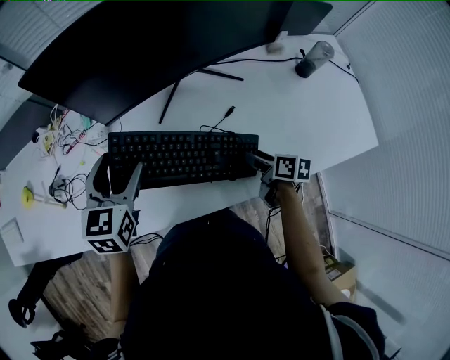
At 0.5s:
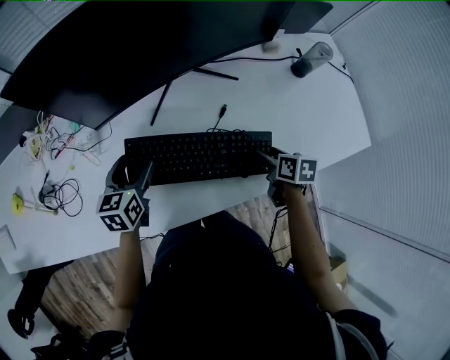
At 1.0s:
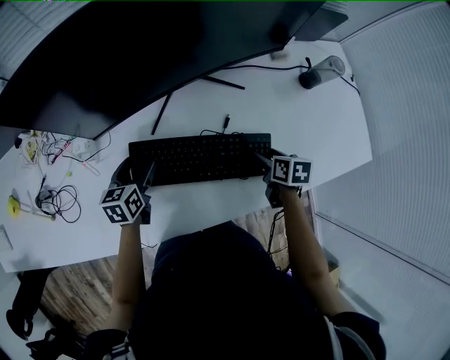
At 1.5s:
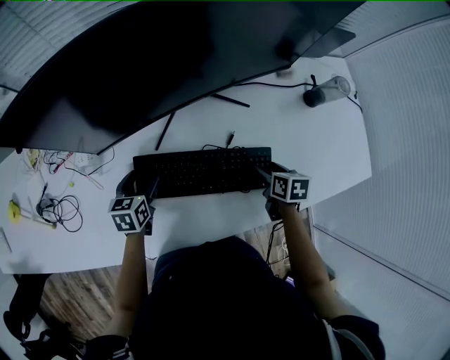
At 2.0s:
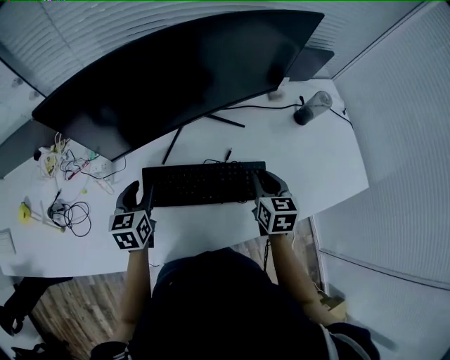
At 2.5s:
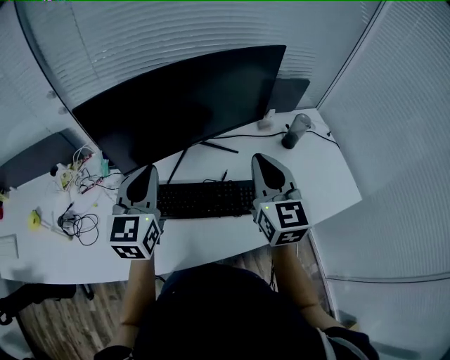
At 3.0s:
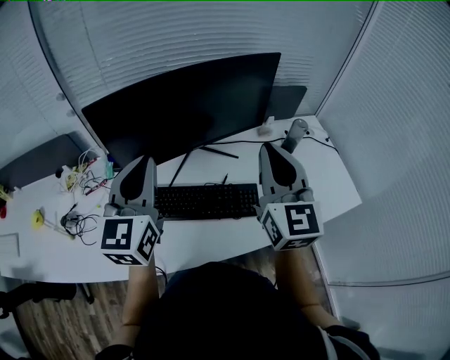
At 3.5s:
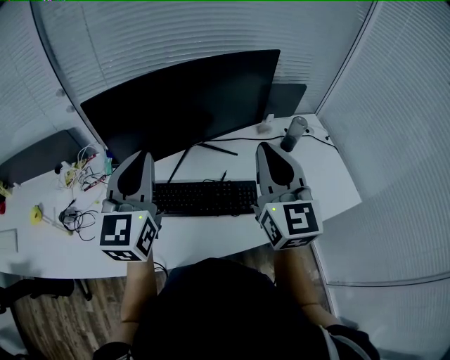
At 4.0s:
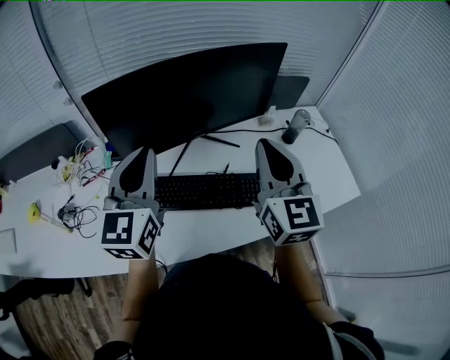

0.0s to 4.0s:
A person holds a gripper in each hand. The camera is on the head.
0.0s to 2.0s: The right gripper is displaced upward and forward by about 10 cm, turns by approximately 50 degrees, and closes its fingers, while the left gripper is displaced downward by about 10 cm, and closes its fingers.
2.0s to 4.0s: The two grippers go roughly 30 cm upward. The left gripper points its fingers approximately 40 degrees further upward, and closes, while the right gripper points its fingers about 40 degrees further upward.

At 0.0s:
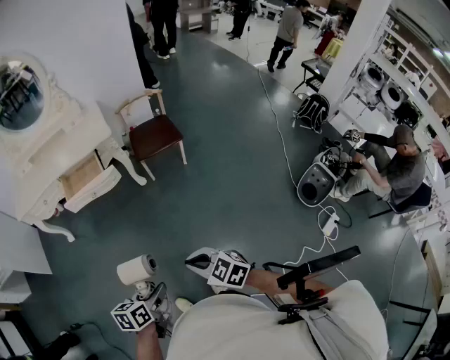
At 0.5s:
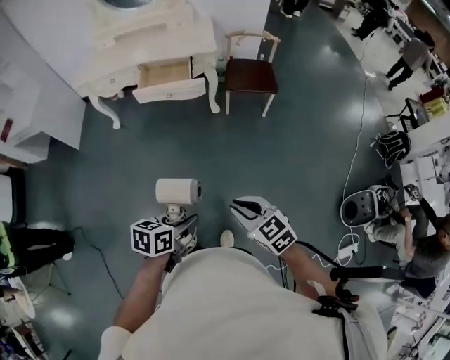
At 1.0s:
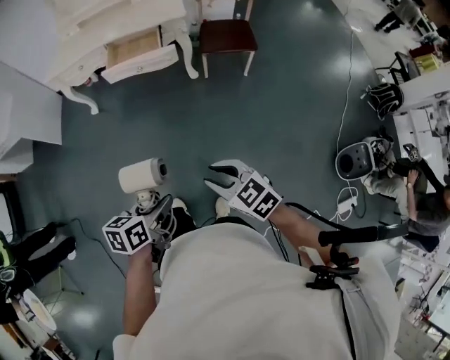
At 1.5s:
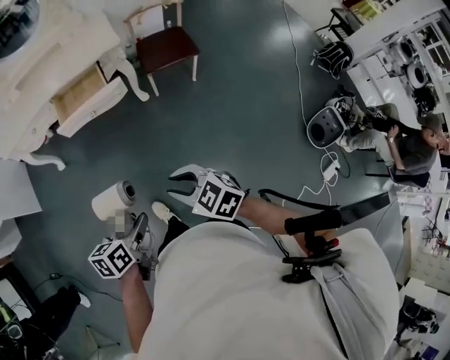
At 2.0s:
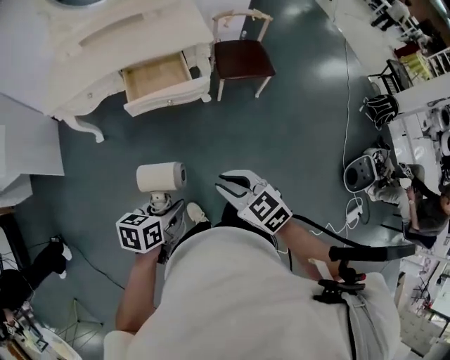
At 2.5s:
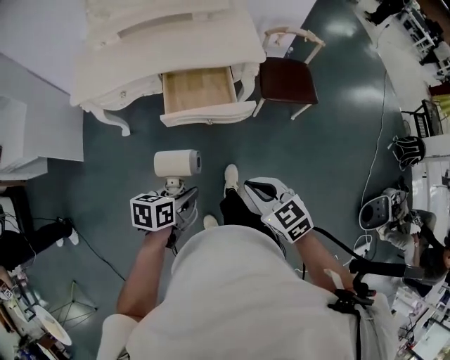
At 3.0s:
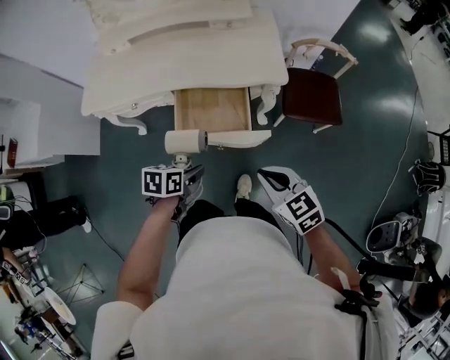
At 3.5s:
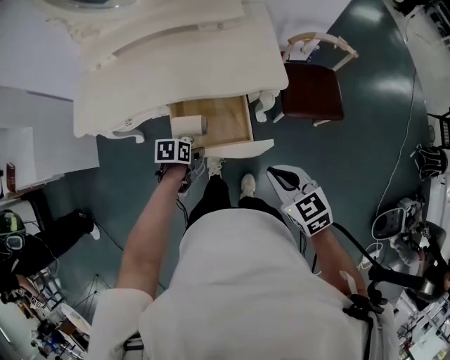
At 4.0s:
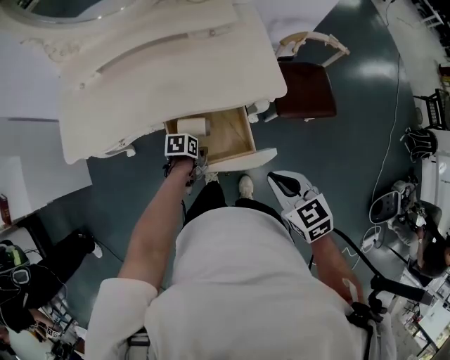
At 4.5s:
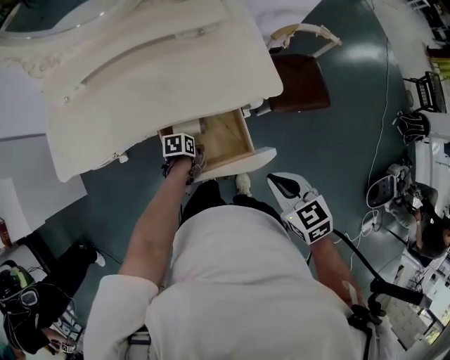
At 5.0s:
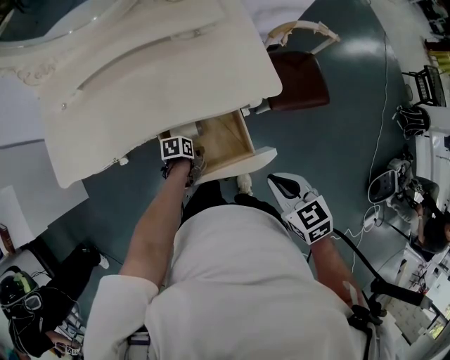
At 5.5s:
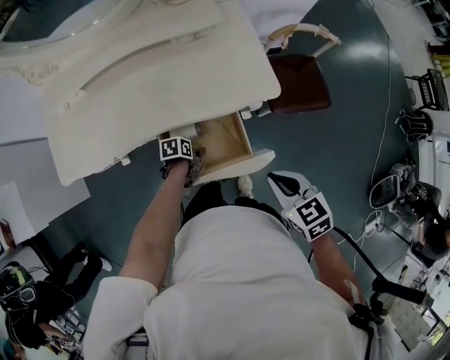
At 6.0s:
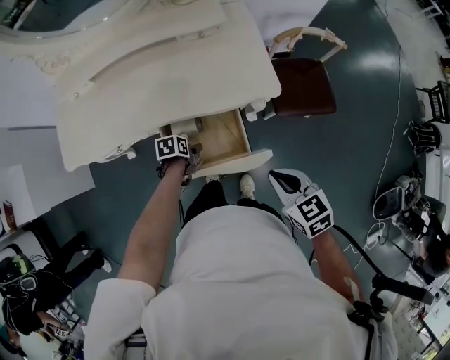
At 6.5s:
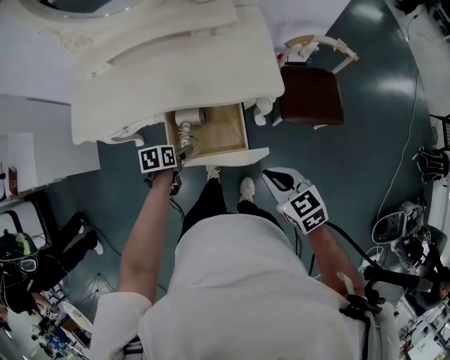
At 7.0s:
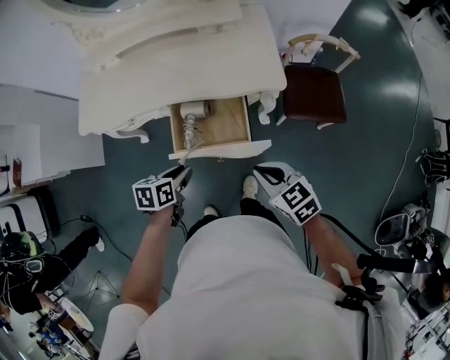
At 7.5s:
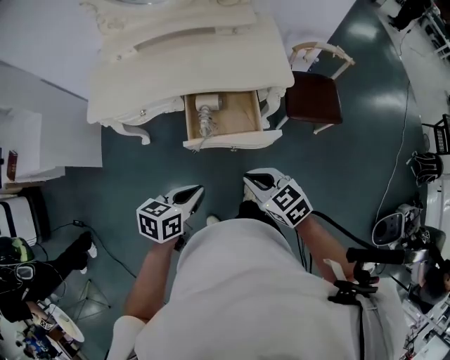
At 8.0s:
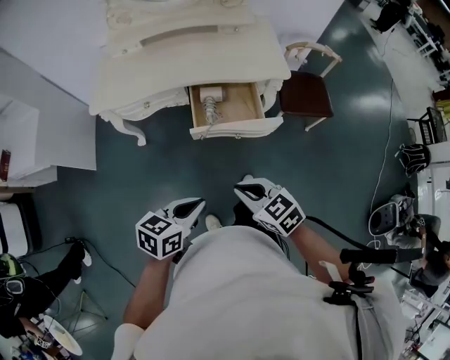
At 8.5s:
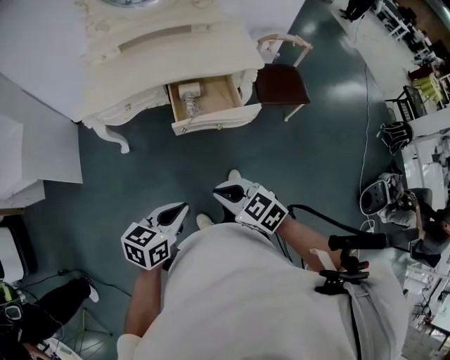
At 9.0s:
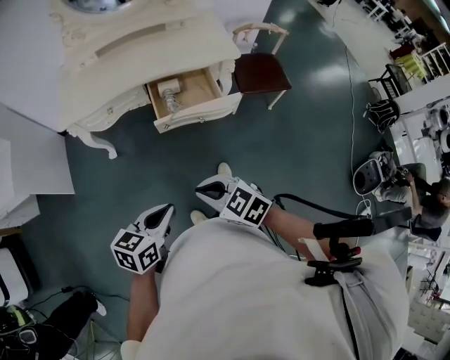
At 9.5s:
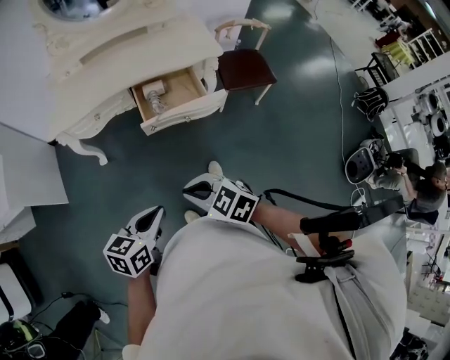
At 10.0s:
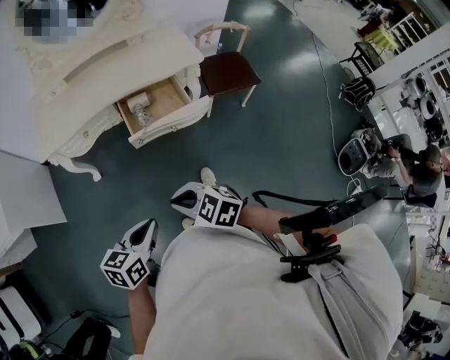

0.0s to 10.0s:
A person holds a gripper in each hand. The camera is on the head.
0.0s to 2.0s: Both grippers move forward and to the left, about 35 cm.
2.0s to 4.0s: Both grippers are carried forward, roughly 60 cm. The left gripper is displaced downward by about 25 cm, and rotates about 30 degrees.
4.0s to 6.0s: The left gripper opens.
6.0s to 8.0s: The right gripper moves backward and to the left, some 35 cm, while the left gripper travels backward and upward by some 50 cm, tips its fingers upward by some 30 degrees, and closes its fingers.
8.0s to 10.0s: The right gripper is displaced backward and to the left by roughly 10 cm, while the left gripper goes roughly 10 cm backward.

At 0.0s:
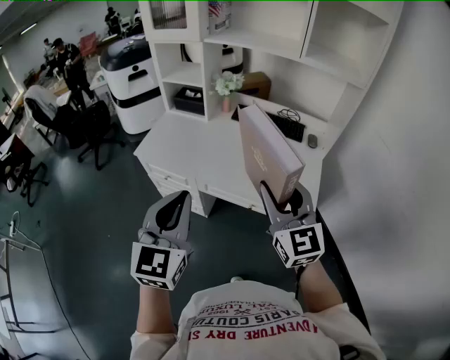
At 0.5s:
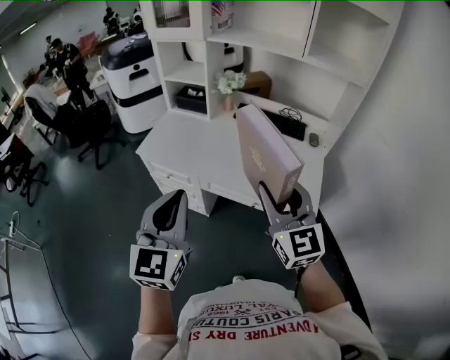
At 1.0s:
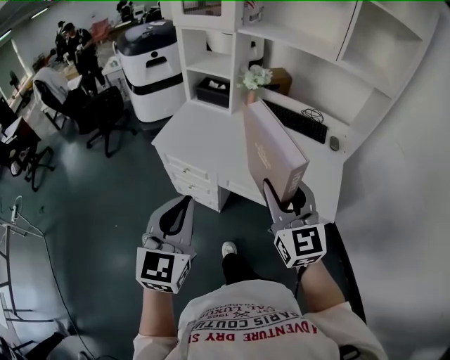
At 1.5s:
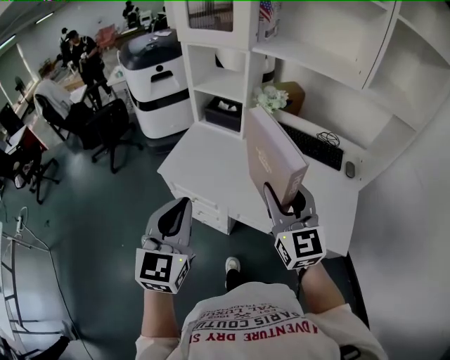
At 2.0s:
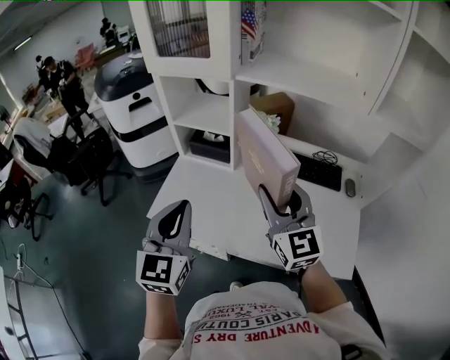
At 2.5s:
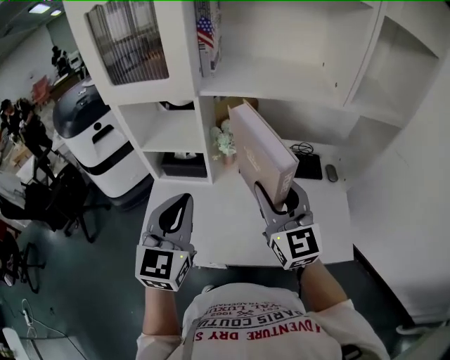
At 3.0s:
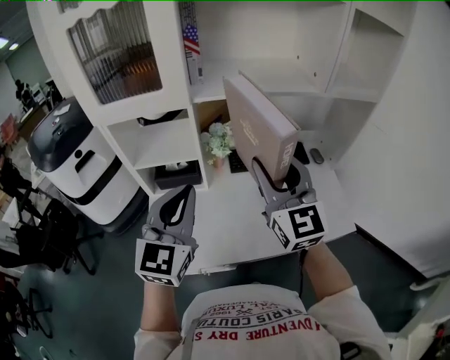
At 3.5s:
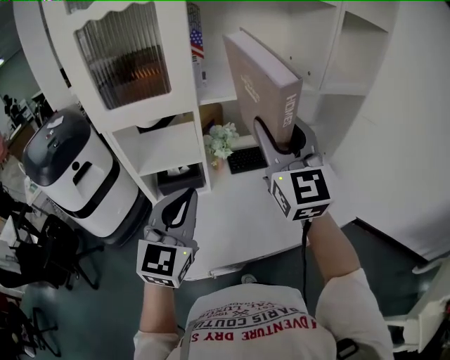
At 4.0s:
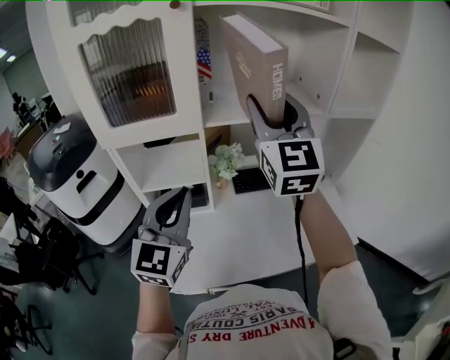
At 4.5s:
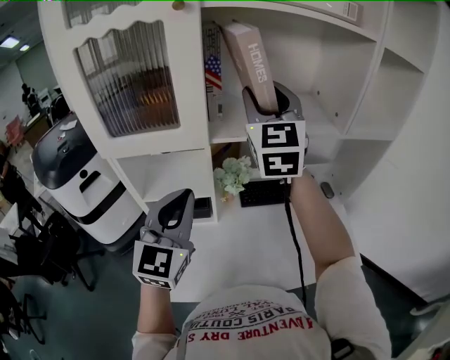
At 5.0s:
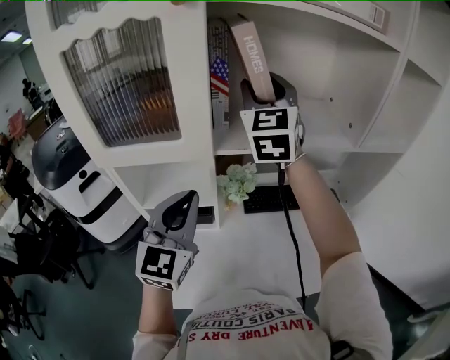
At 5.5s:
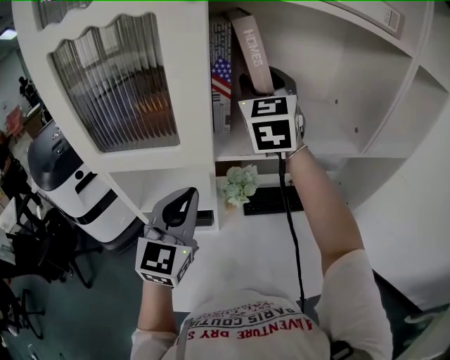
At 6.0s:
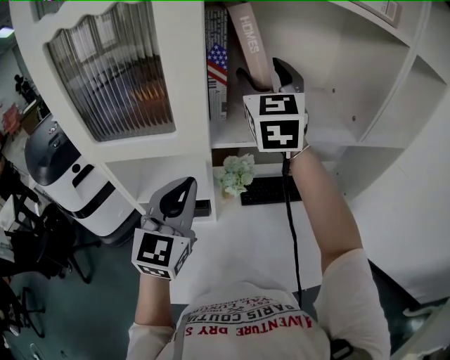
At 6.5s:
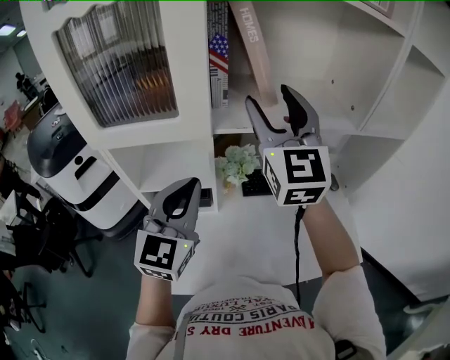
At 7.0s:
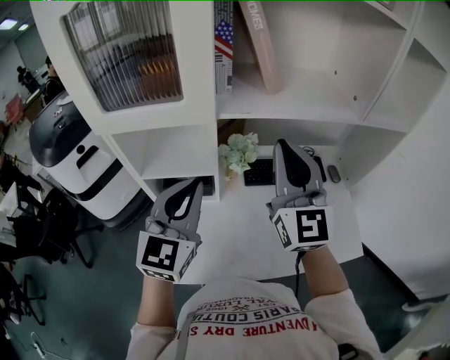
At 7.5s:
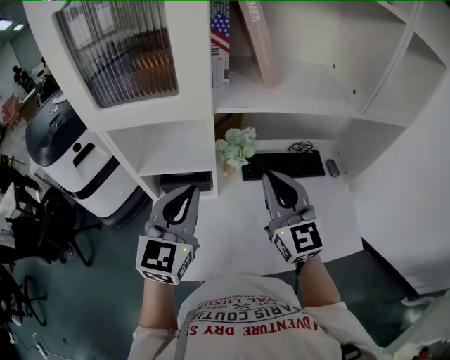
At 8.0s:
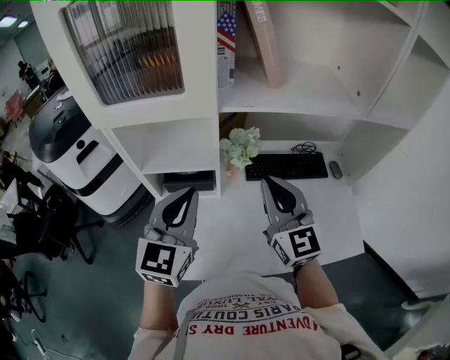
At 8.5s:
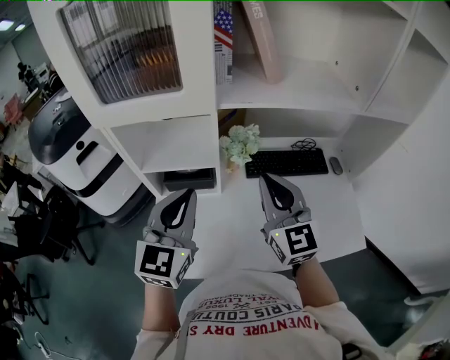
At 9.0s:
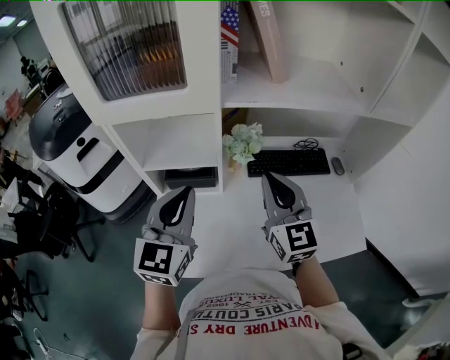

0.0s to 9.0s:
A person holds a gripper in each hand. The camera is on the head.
0.0s to 2.0s: The two grippers go roughly 35 cm forward.
2.0s to 4.5s: The left gripper ends up some 25 cm from where it was, and rotates about 30 degrees. The right gripper moves approximately 35 cm, and rotates approximately 40 degrees.
4.5s to 7.0s: The right gripper is displaced downward and backward by approximately 15 cm, and closes. Meanwhile the left gripper travels forward and back again, approximately 10 cm each way.
7.0s to 9.0s: The right gripper travels downward by about 10 cm. Meanwhile the left gripper shifts by approximately 5 cm.

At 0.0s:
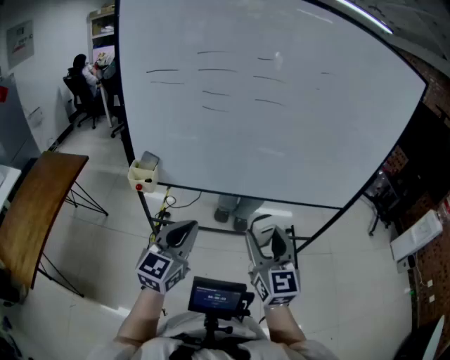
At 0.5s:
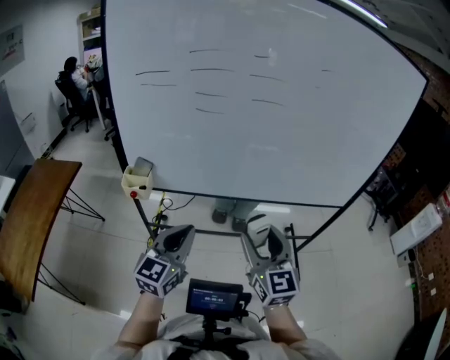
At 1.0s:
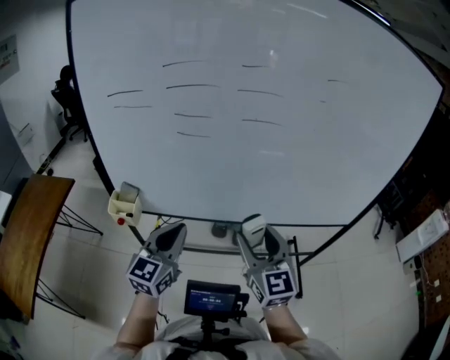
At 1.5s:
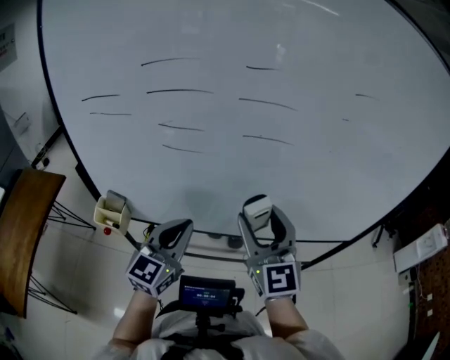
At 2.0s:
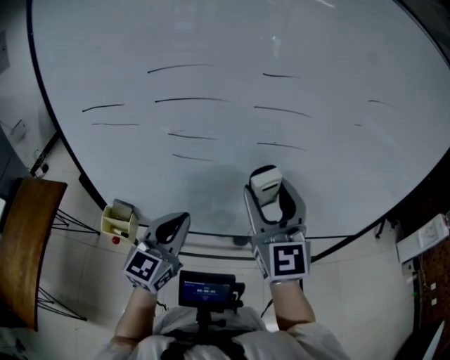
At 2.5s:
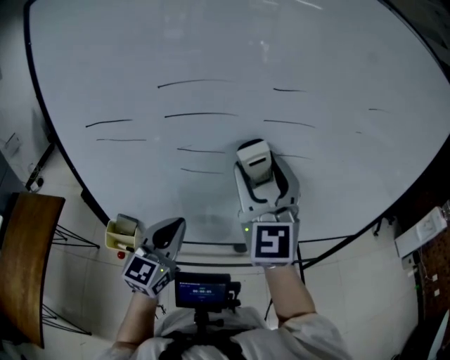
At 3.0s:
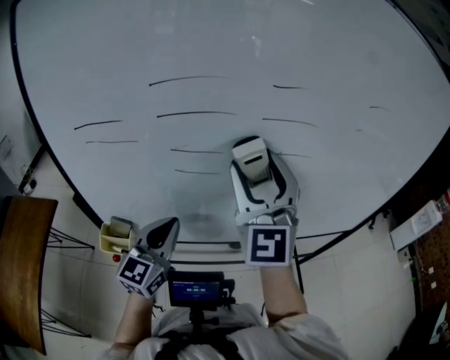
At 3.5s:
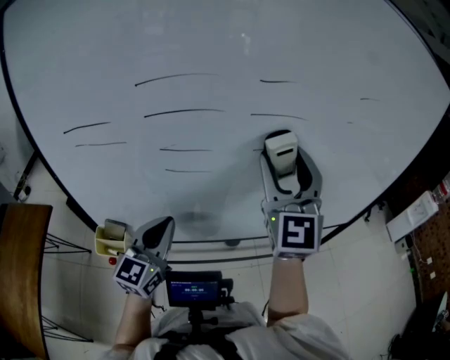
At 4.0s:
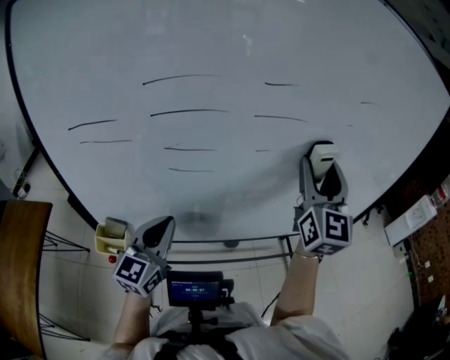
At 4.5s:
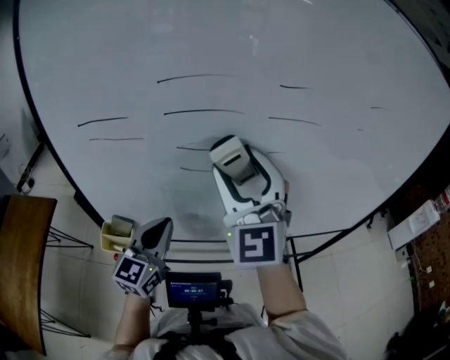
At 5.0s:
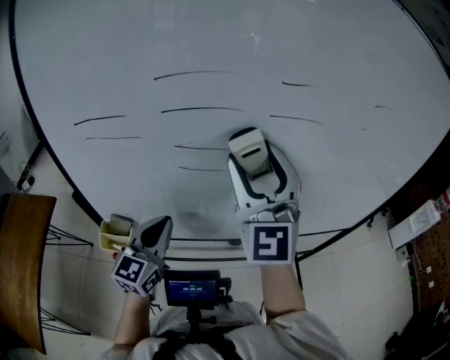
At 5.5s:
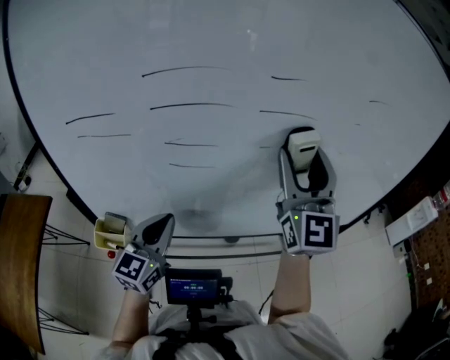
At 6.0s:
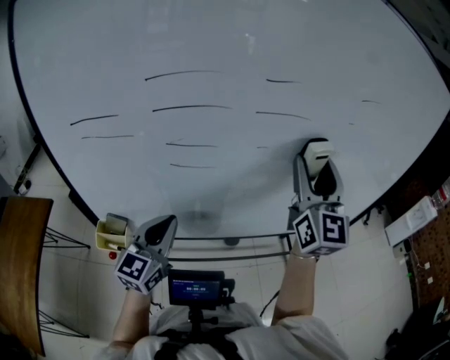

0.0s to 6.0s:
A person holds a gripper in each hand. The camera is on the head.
0.0s to 2.0s: The right gripper travels forward and upward by about 30 cm. The left gripper travels forward by about 25 cm.
2.0s to 4.0s: The left gripper moves roughly 5 cm, while the right gripper travels to the right, upward and forward by roughly 15 cm, and swivels some 20 degrees.
4.0s to 6.0s: The right gripper moves approximately 20 cm to the left and comes back.
